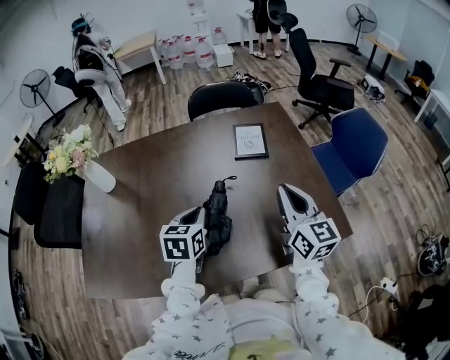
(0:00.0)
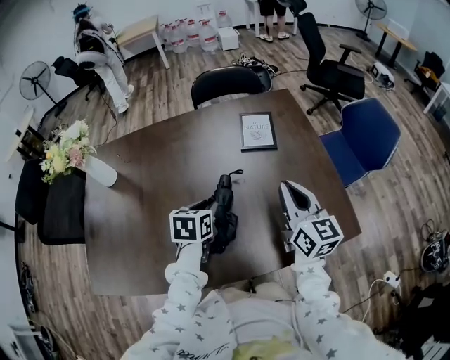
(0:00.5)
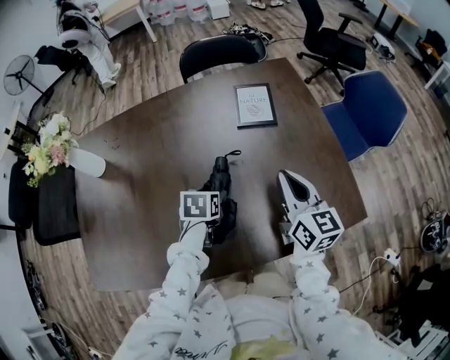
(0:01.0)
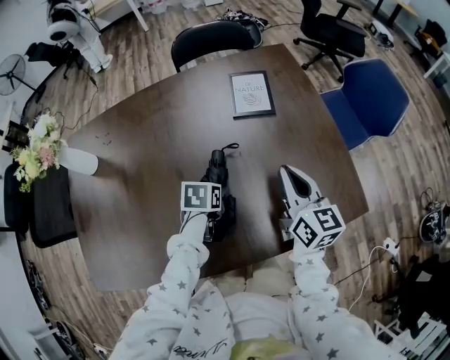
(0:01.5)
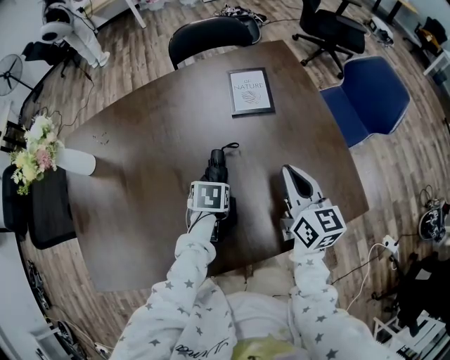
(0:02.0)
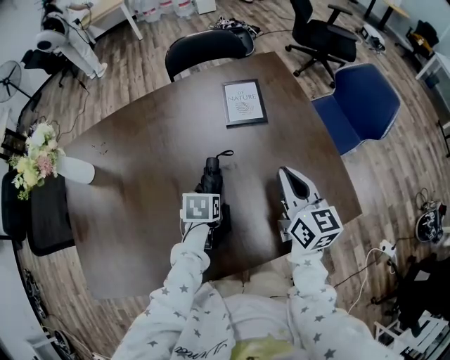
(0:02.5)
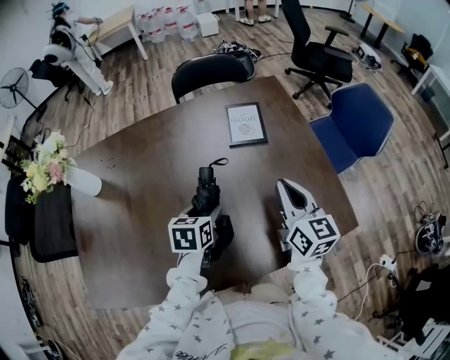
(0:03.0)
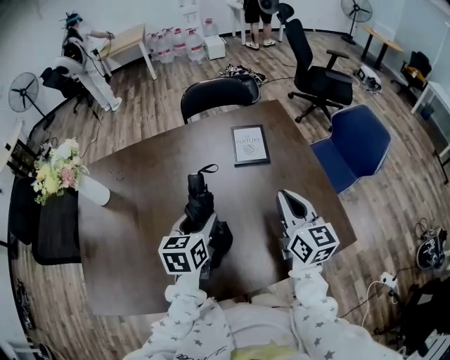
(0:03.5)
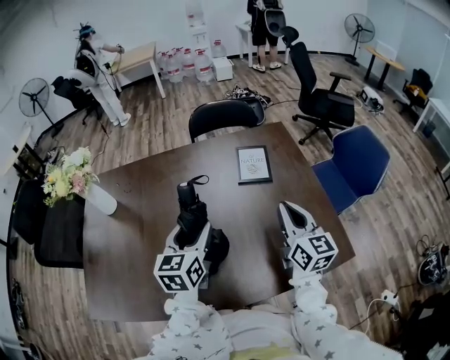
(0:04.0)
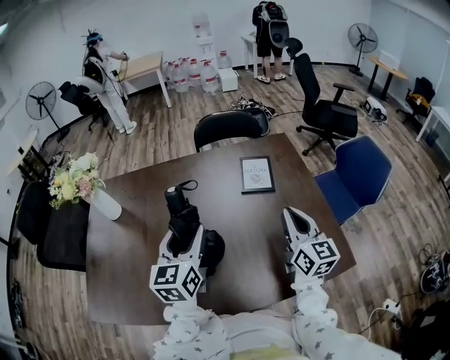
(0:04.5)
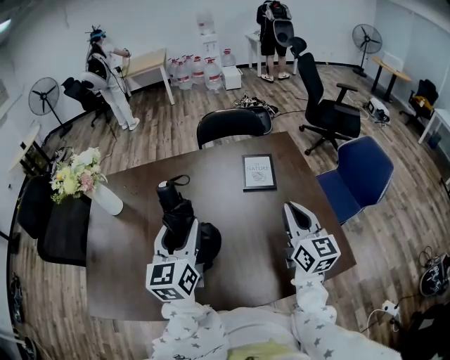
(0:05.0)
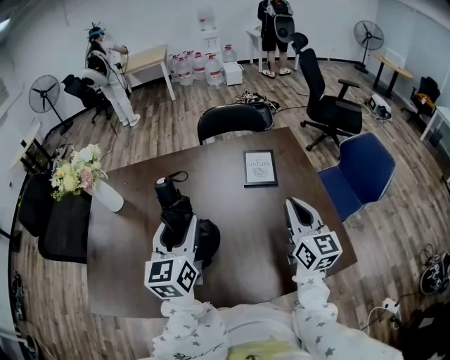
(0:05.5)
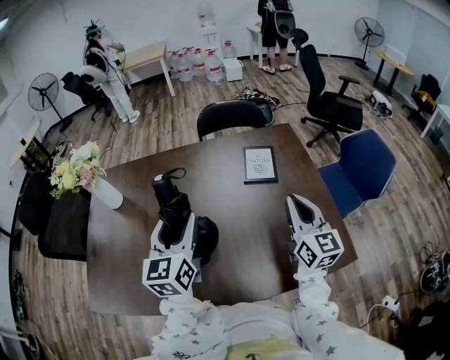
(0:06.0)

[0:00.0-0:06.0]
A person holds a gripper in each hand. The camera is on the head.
0:00.0 to 0:02.0: The left gripper travels downward by some 15 cm, tips its fingers downward by approximately 30 degrees, and opens its fingers; the right gripper shifts about 10 cm downward.
0:02.0 to 0:04.0: The right gripper is displaced upward by approximately 10 cm. Meanwhile the left gripper shifts about 25 cm upward, and angles its fingers upward, by about 50 degrees.
0:04.0 to 0:06.0: The left gripper goes some 5 cm upward.

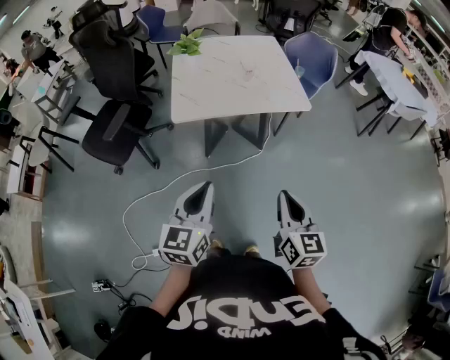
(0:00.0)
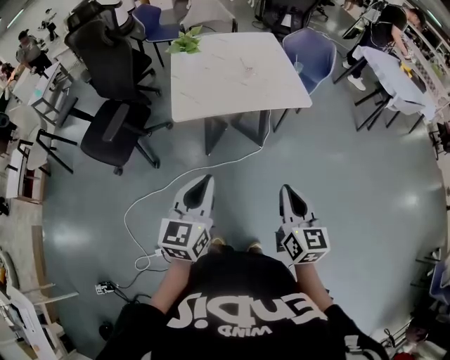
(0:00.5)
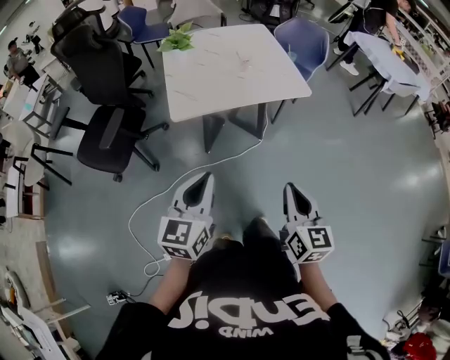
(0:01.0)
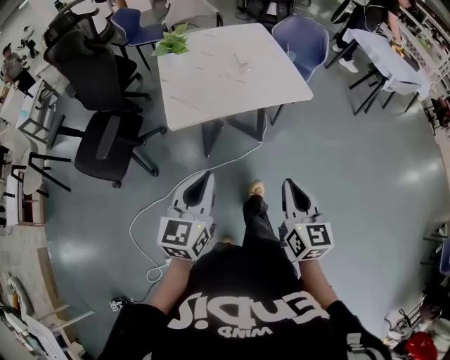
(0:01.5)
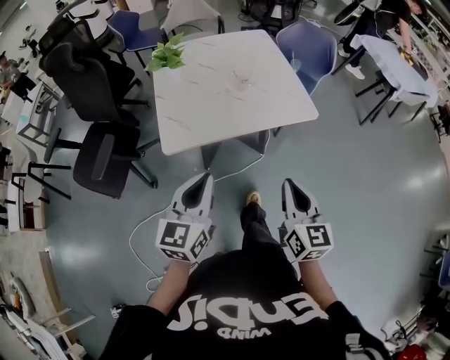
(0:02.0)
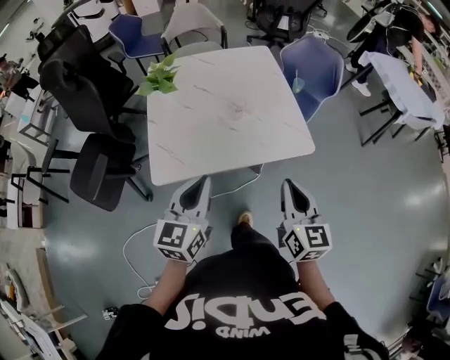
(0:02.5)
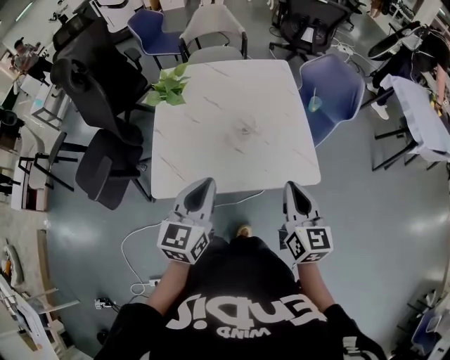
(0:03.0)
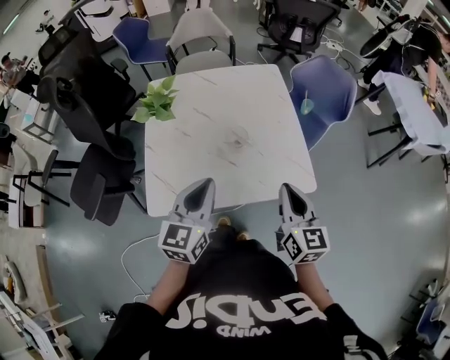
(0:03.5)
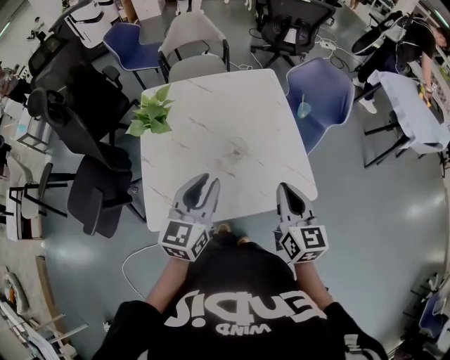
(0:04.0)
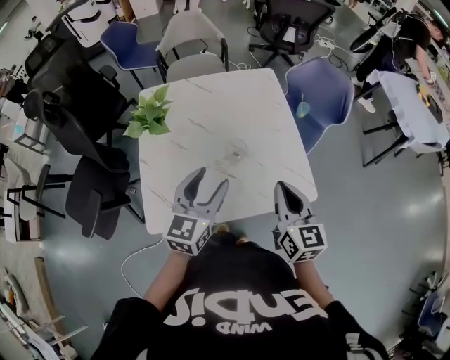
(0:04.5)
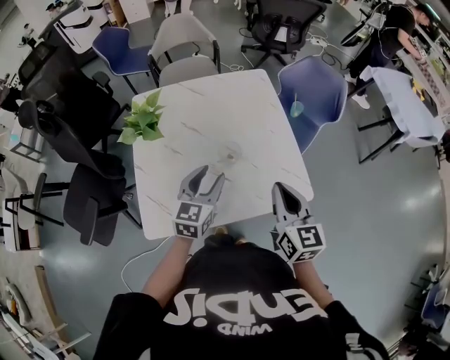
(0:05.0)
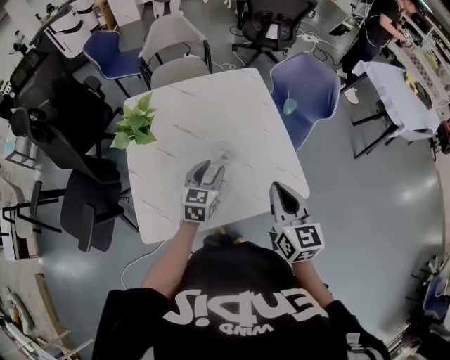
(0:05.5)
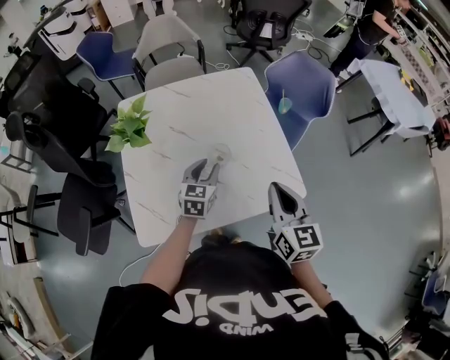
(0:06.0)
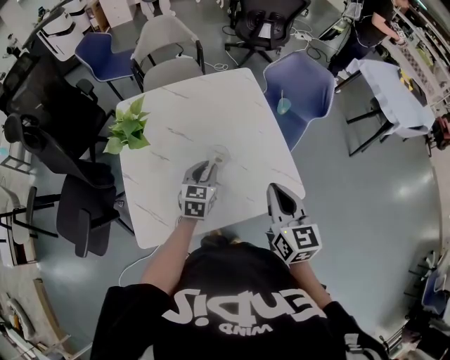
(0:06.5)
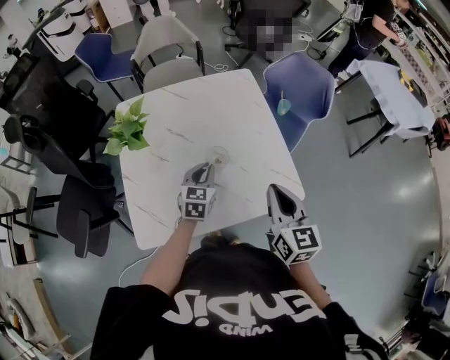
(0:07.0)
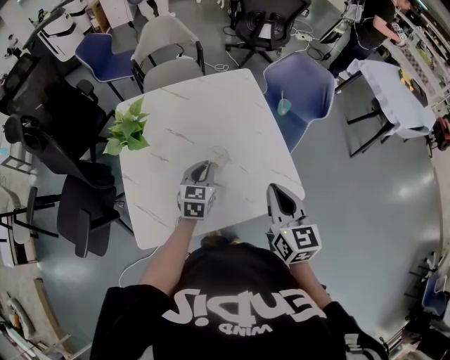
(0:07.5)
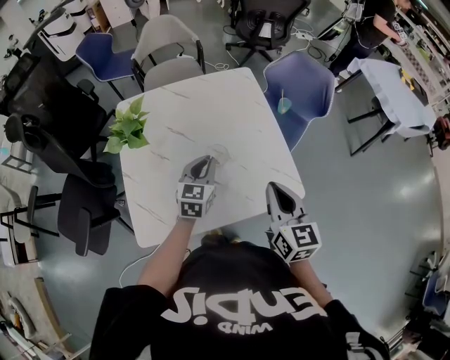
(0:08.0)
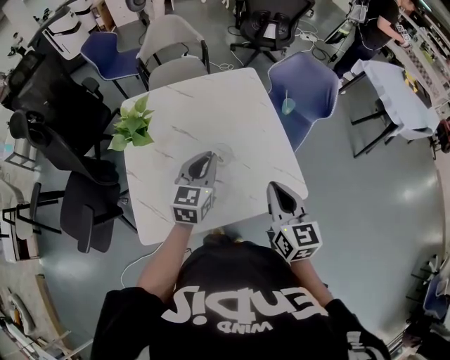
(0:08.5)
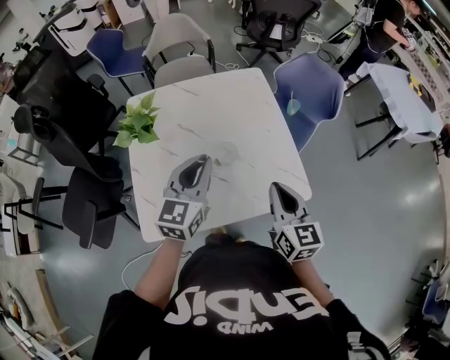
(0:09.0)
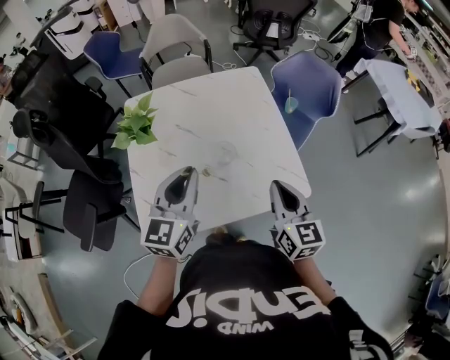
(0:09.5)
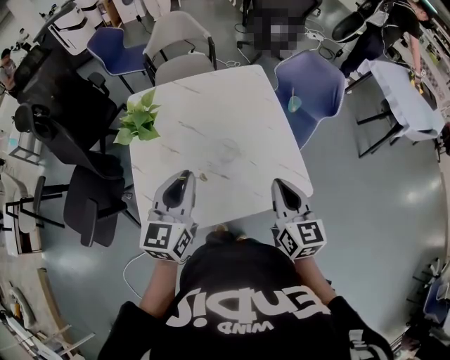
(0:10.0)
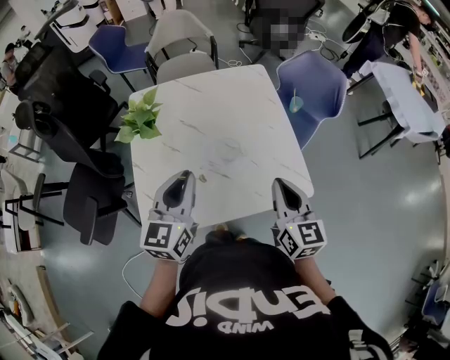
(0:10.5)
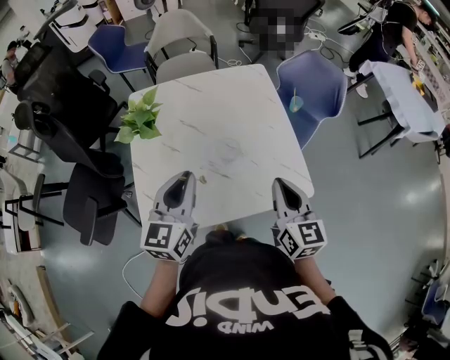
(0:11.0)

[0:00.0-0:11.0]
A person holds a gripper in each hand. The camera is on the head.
0:00.0 to 0:02.0: Both grippers move forward, approximately 20 cm.
0:02.0 to 0:03.5: The grippers both shift forward by approximately 30 cm.
0:03.5 to 0:05.5: The left gripper moves forward and downward, roughly 20 cm, and opens its fingers. The right gripper shifts roughly 5 cm forward.
0:05.5 to 0:07.5: The left gripper closes its fingers.
0:07.5 to 0:09.0: The left gripper heads upward, covering about 15 cm.
0:09.0 to 0:11.0: The left gripper moves approximately 5 cm.

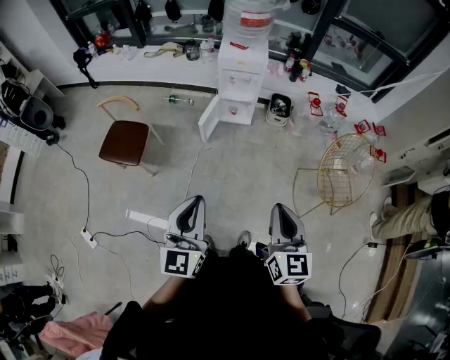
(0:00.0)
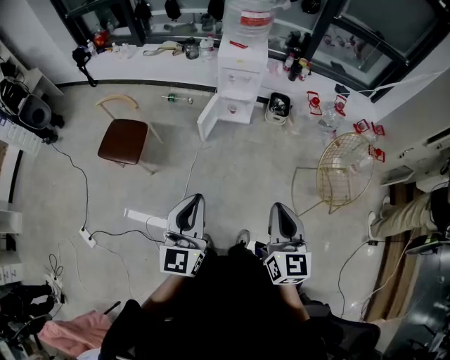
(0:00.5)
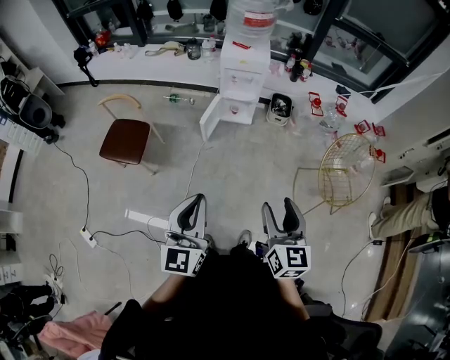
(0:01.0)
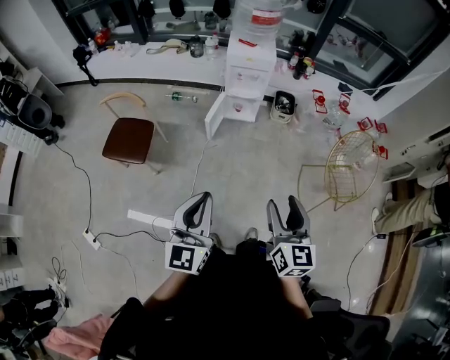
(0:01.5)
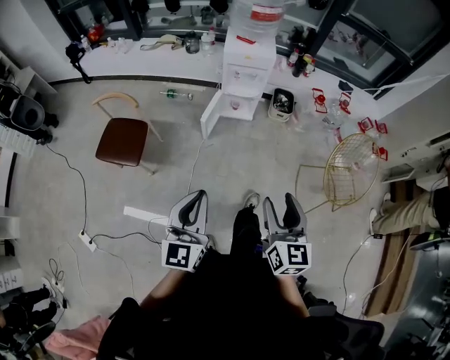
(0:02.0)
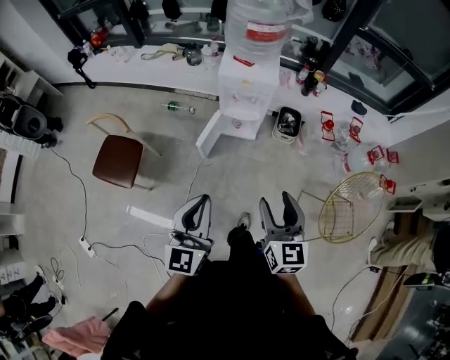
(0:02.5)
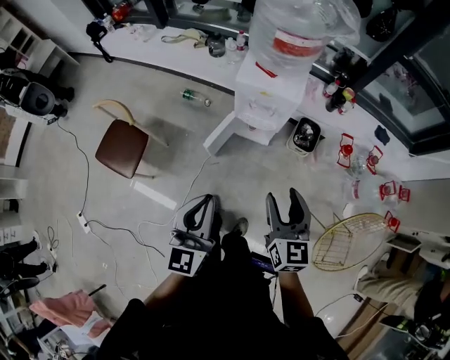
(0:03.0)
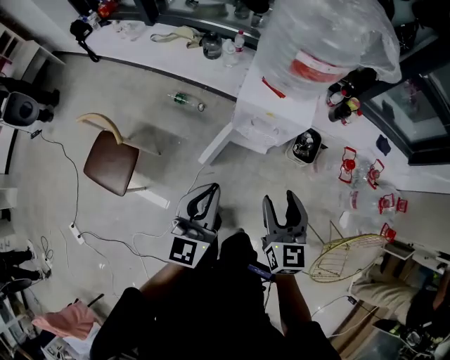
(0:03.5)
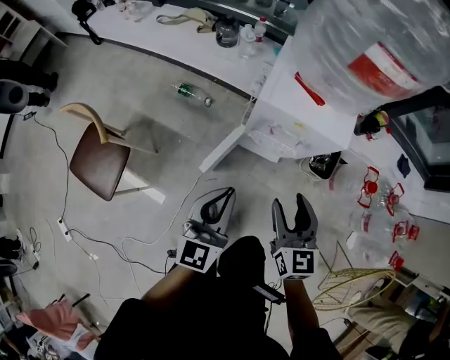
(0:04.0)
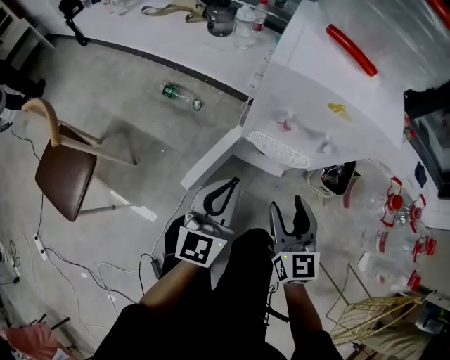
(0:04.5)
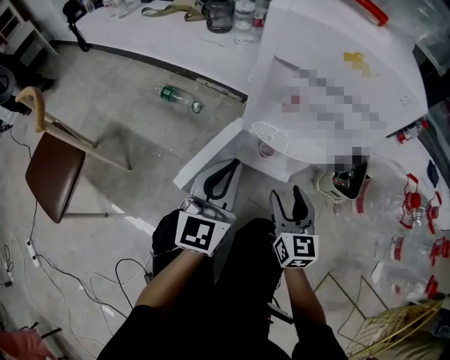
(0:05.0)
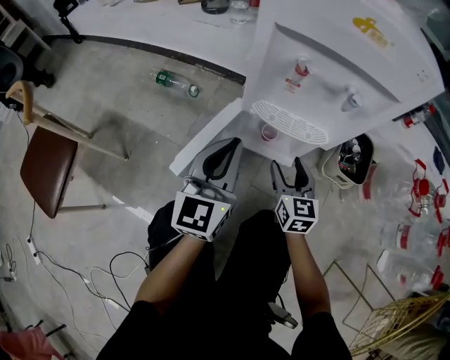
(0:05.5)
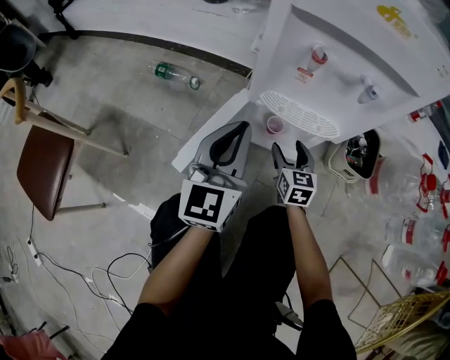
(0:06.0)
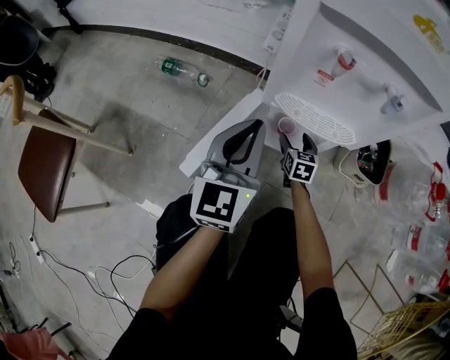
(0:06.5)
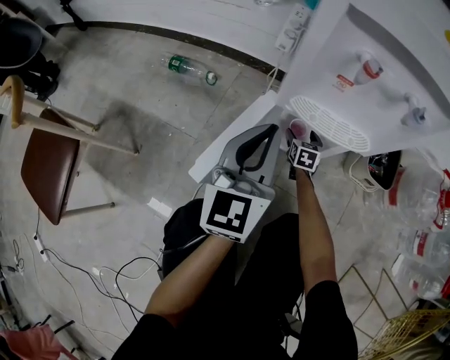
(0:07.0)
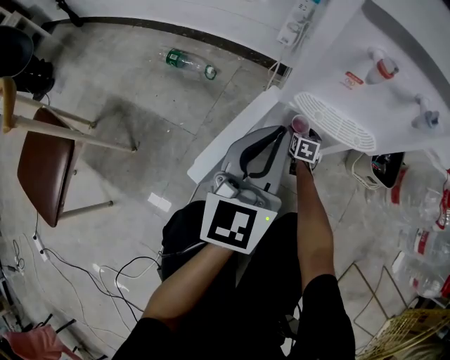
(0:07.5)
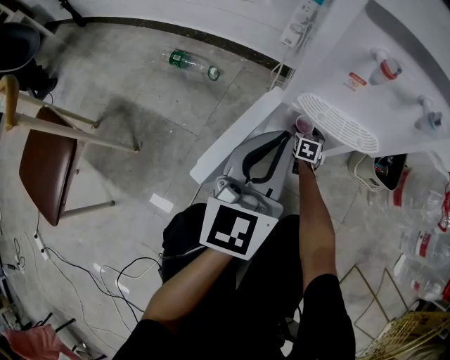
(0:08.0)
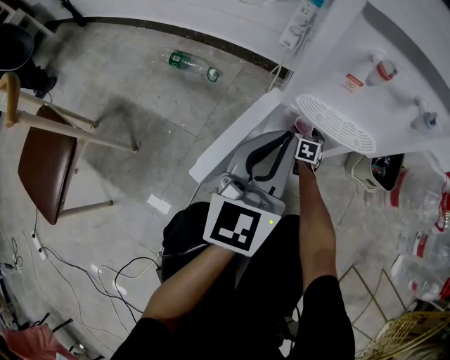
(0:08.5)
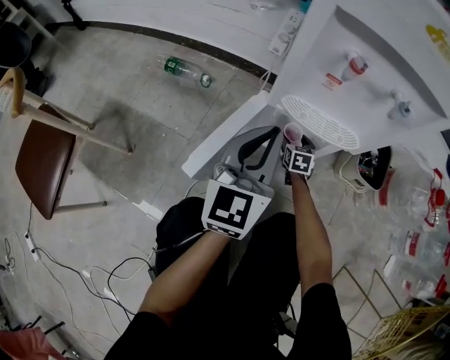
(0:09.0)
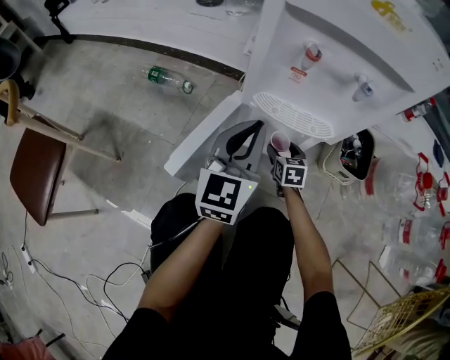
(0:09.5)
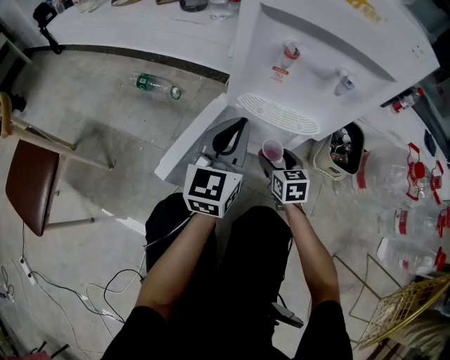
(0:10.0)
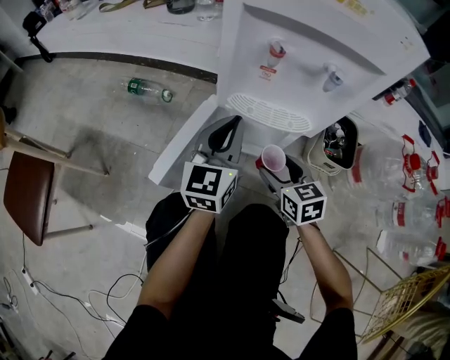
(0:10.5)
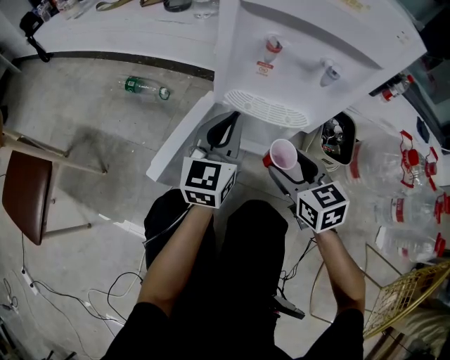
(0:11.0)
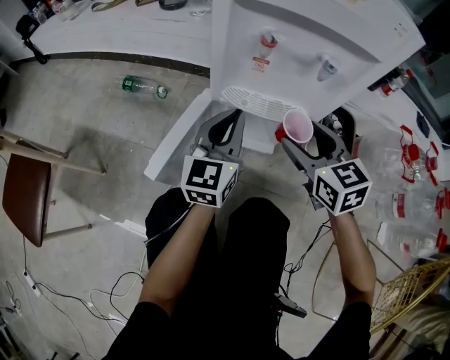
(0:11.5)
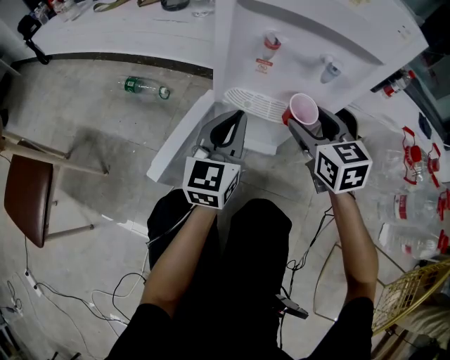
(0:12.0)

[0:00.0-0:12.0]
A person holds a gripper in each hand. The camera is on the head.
0:00.0 to 0:02.0: The grippers both shift to the left and forward by some 10 cm. The right gripper opens up.
0:02.0 to 0:04.0: The pair of grippers is taken forward, some 60 cm. The two grippers go about 25 cm downward. The right gripper changes its angle by some 20 degrees.
0:04.0 to 0:06.0: The left gripper goes some 35 cm downward; the right gripper travels downward by some 50 cm.
0:06.0 to 0:08.0: The right gripper goes roughly 25 cm downward and forward.
0:08.0 to 0:10.0: The right gripper goes approximately 25 cm upward and backward.
0:10.0 to 0:12.0: The right gripper is displaced upward by about 20 cm.
